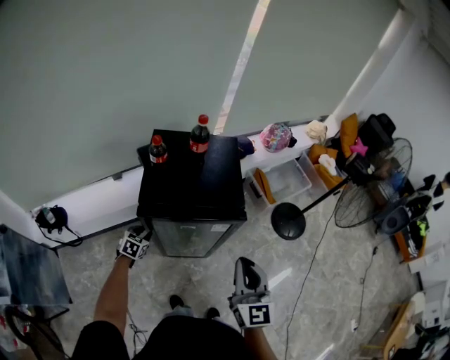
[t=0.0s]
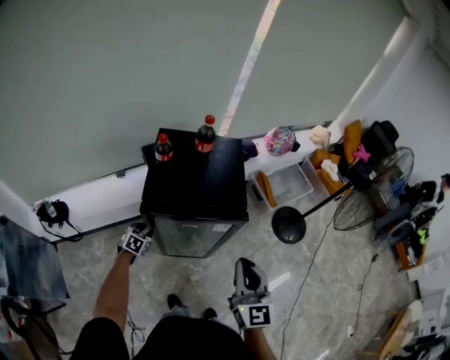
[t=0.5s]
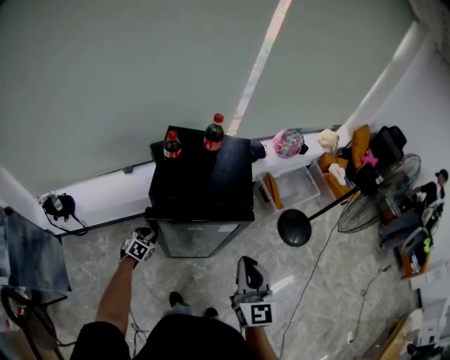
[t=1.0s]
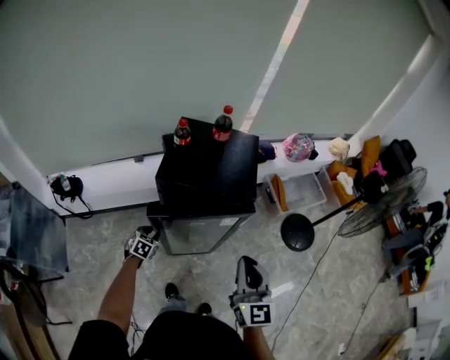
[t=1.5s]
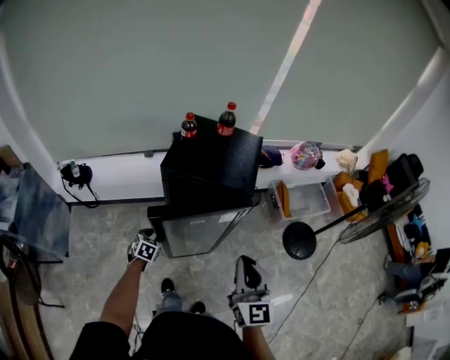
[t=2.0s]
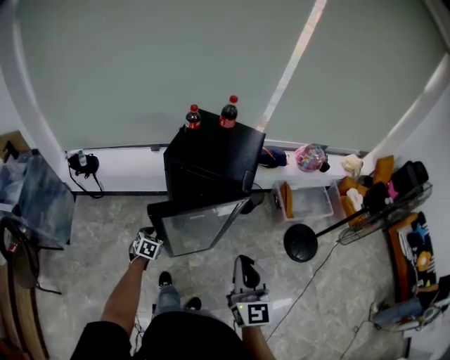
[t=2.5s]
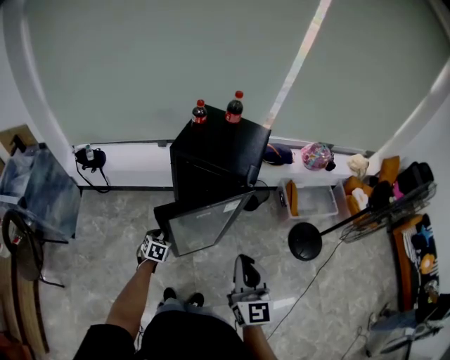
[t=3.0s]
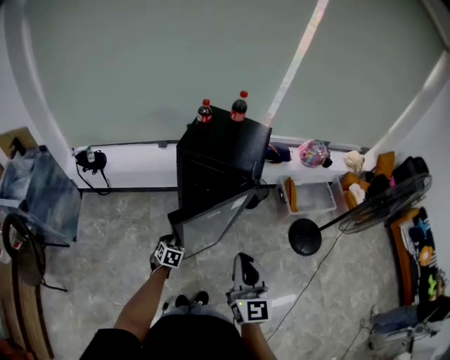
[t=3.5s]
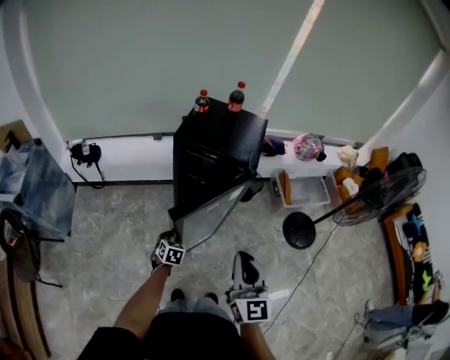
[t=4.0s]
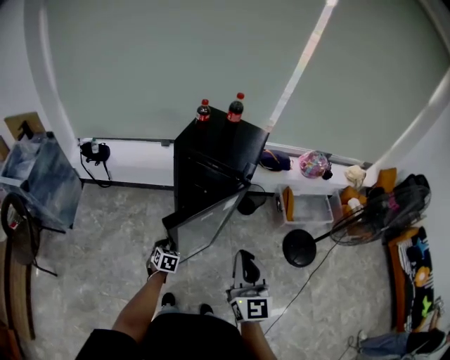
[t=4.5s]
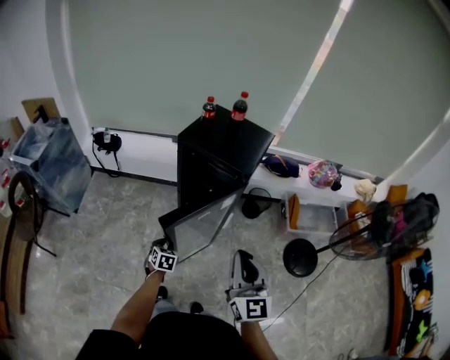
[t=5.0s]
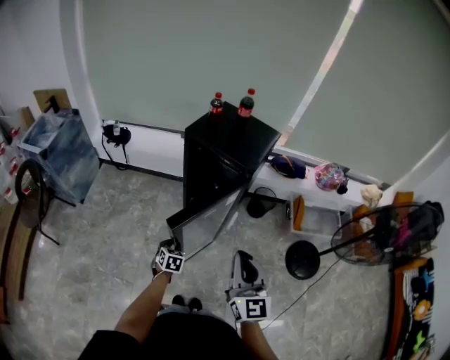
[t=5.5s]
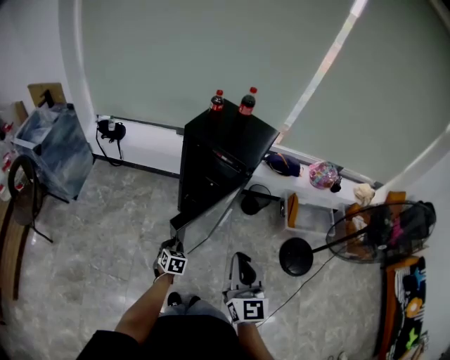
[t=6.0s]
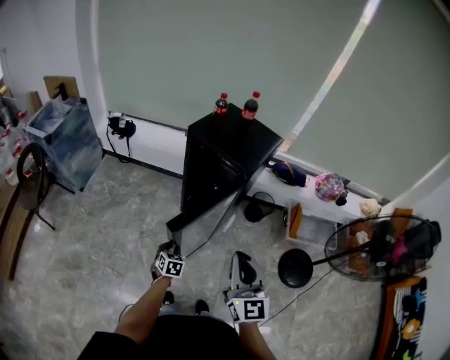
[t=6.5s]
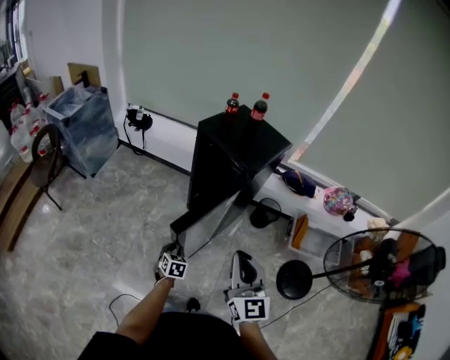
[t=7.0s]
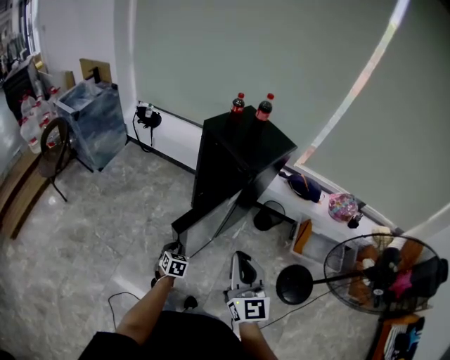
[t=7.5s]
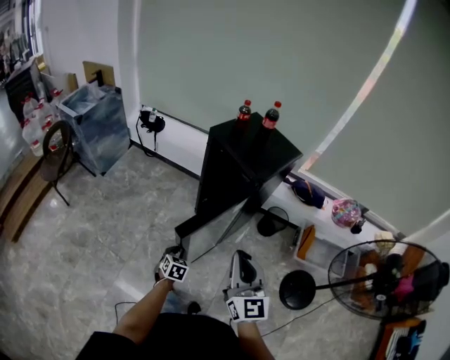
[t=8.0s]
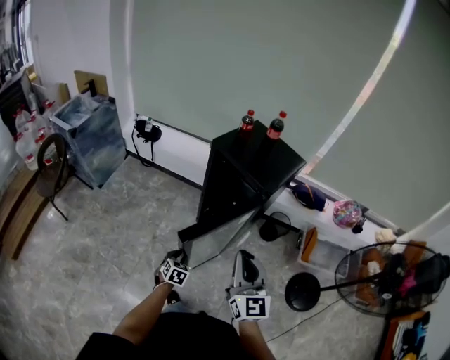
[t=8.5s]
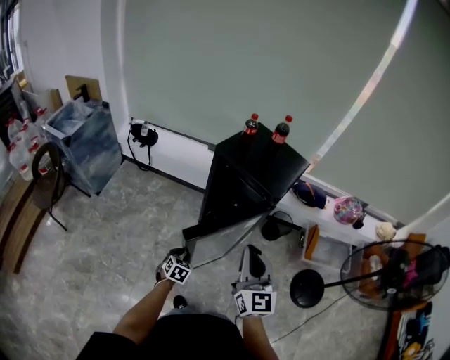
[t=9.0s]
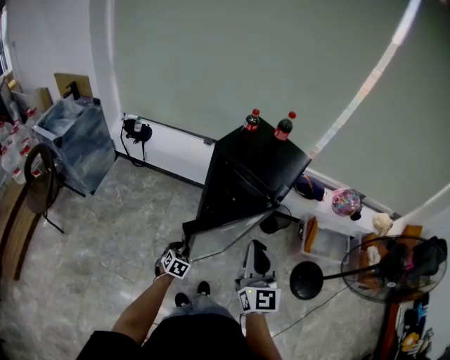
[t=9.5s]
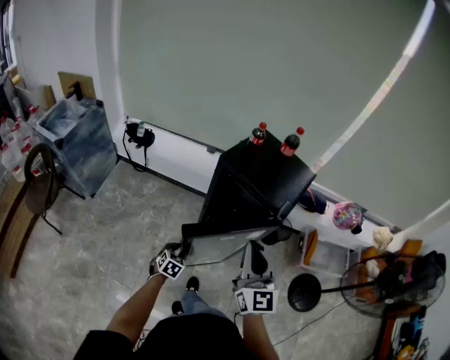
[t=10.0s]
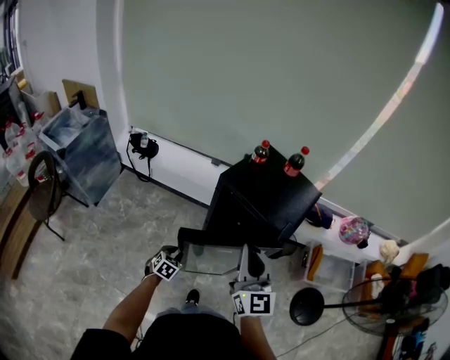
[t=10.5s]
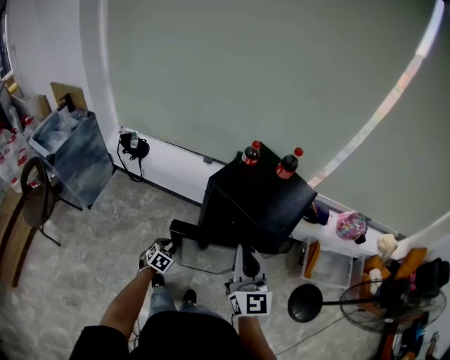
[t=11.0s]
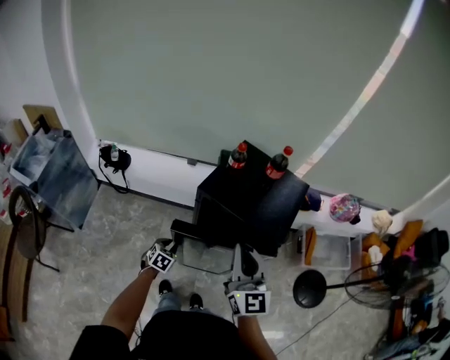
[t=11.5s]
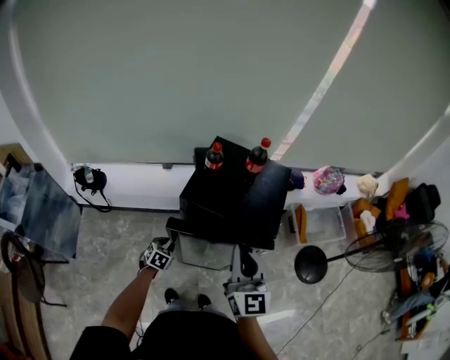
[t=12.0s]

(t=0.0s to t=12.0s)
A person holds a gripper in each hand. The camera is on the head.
t=0.0s - t=2.0s: The right gripper goes some 5 cm backward, while the left gripper goes roughly 15 cm backward.
t=2.0s - t=4.0s: The right gripper goes some 10 cm backward. The left gripper shifts approximately 15 cm backward and to the right.
t=4.0s - t=6.0s: The right gripper is displaced to the right by approximately 10 cm; the left gripper travels backward and to the right by roughly 15 cm.
t=6.0s - t=8.0s: The left gripper travels backward and to the right by about 10 cm. Meanwhile the right gripper shifts roughly 5 cm to the right.
t=8.0s - t=10.0s: Both grippers move forward and to the left, some 20 cm.
t=10.0s - t=12.0s: The left gripper heads forward, covering some 25 cm, while the right gripper shifts approximately 15 cm forward.

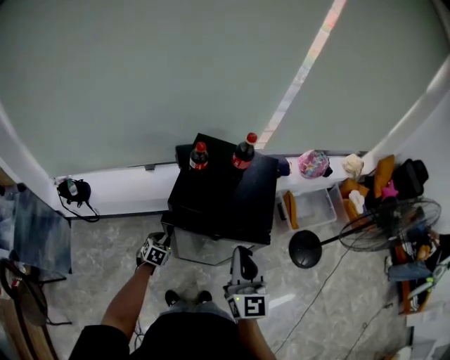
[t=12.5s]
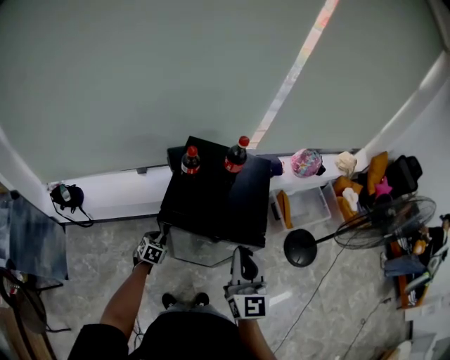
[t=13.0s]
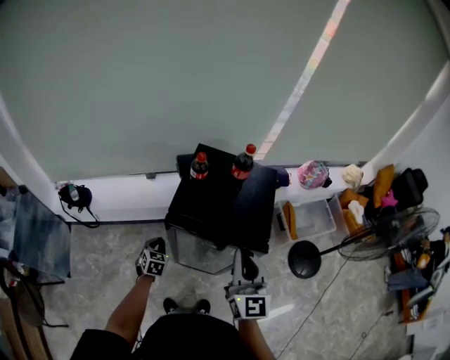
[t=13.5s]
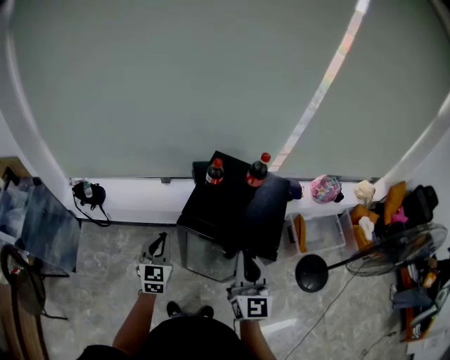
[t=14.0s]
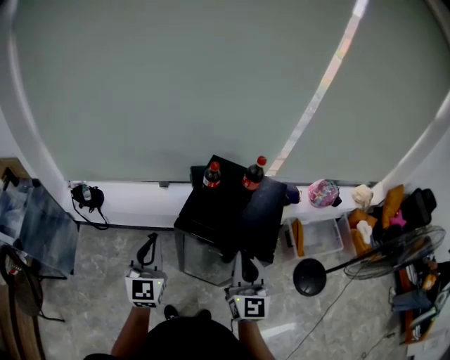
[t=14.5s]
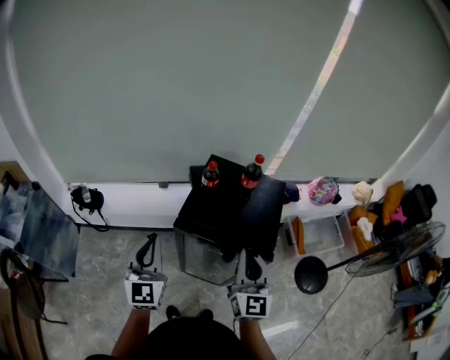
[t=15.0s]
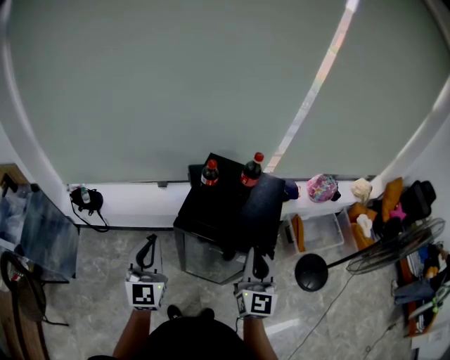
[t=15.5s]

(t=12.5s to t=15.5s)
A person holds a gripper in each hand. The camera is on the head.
t=12.5s - t=14.0s: The left gripper moves upward, approximately 20 cm, and tips its fingers upward by some 40 degrees.
t=14.0s - t=15.5s: The left gripper goes roughly 15 cm upward.

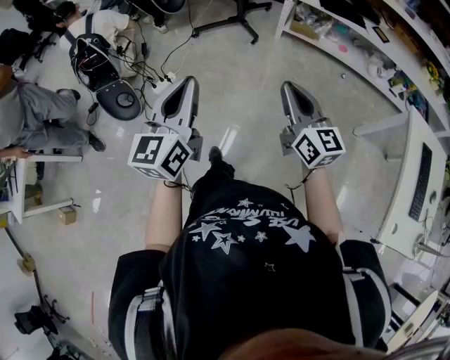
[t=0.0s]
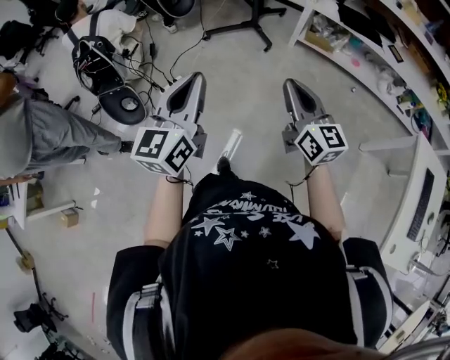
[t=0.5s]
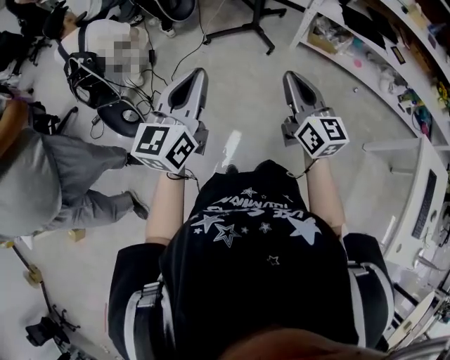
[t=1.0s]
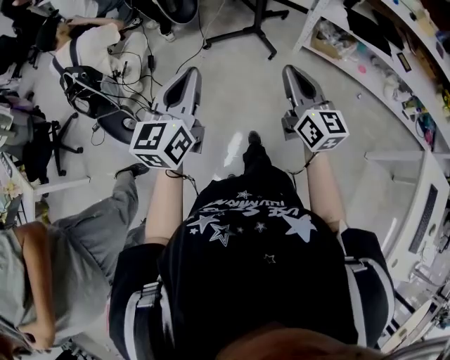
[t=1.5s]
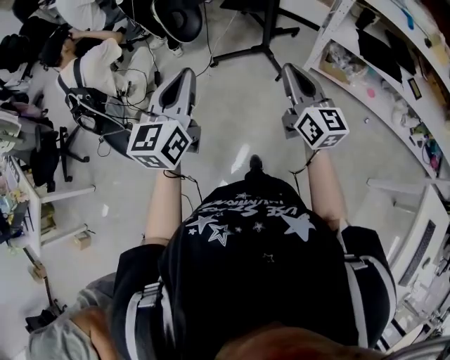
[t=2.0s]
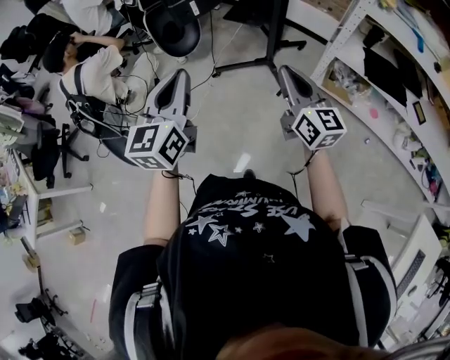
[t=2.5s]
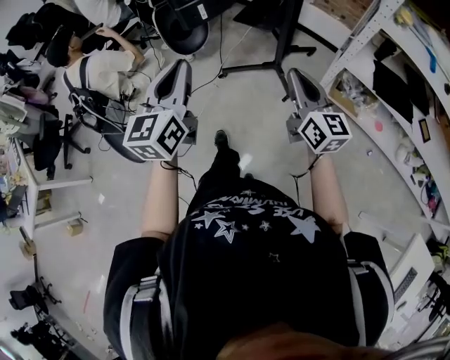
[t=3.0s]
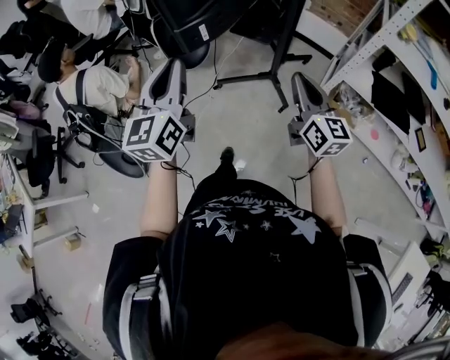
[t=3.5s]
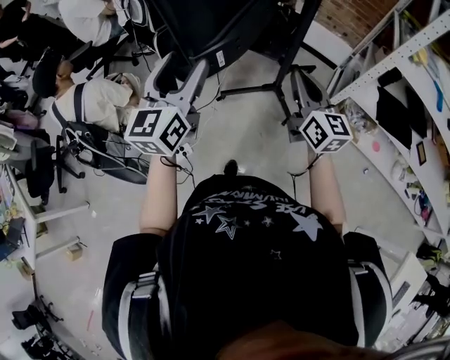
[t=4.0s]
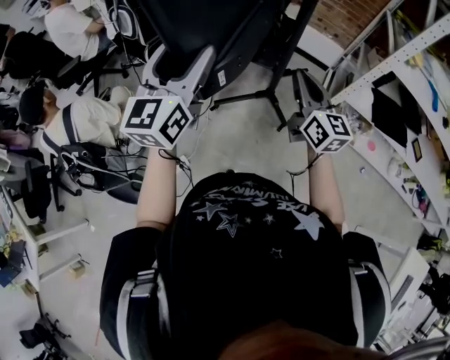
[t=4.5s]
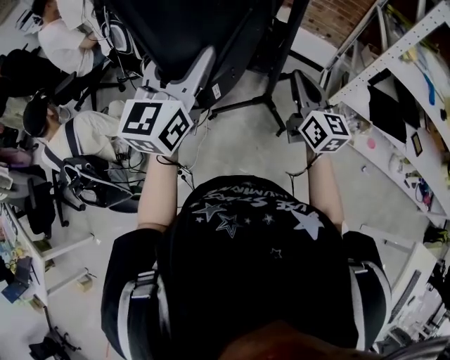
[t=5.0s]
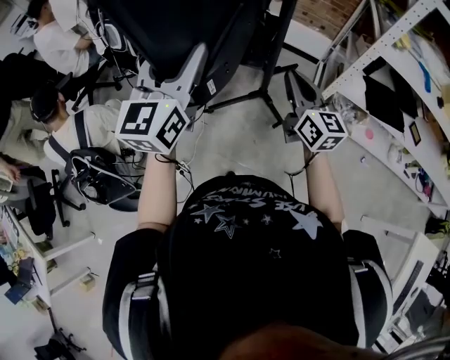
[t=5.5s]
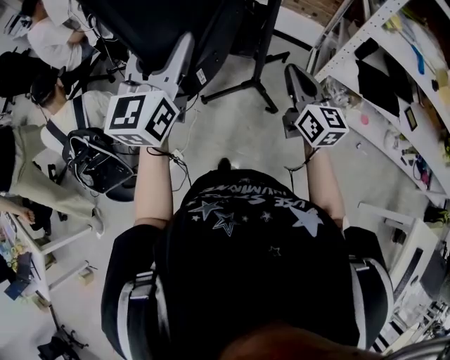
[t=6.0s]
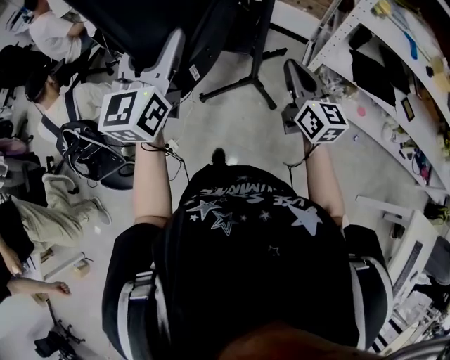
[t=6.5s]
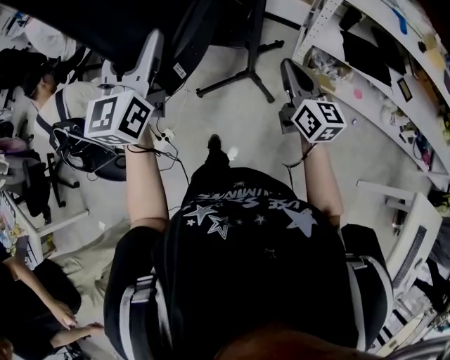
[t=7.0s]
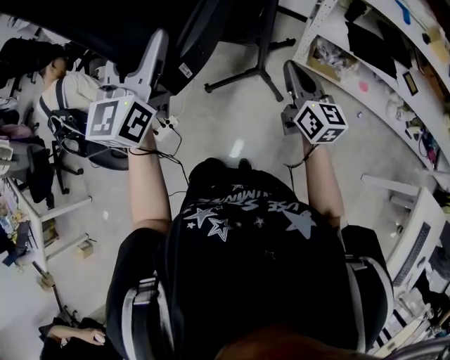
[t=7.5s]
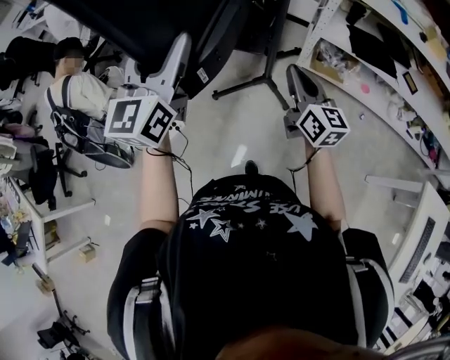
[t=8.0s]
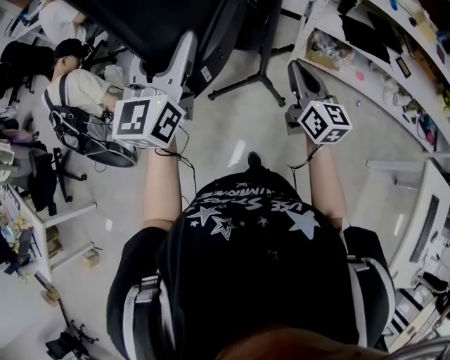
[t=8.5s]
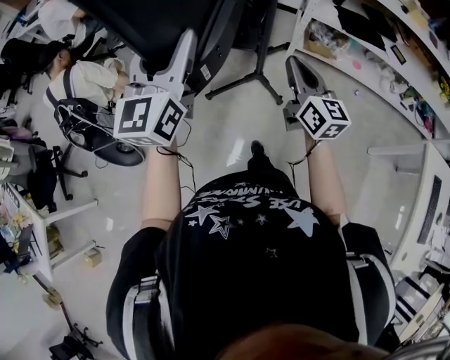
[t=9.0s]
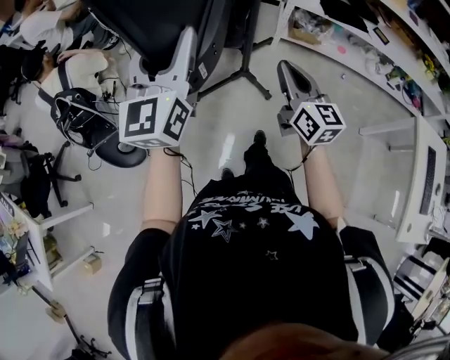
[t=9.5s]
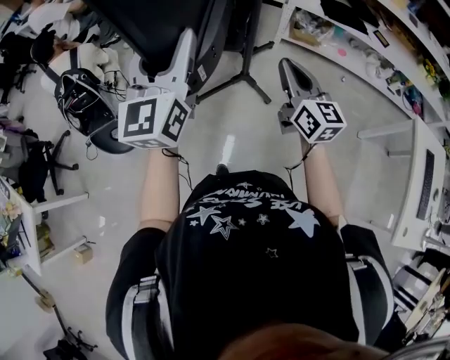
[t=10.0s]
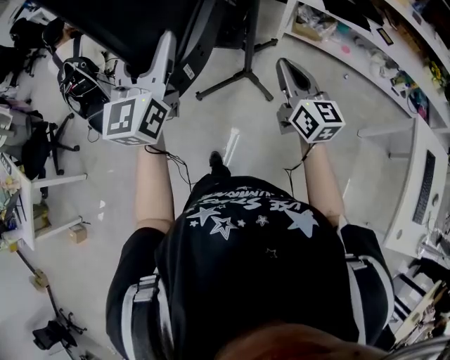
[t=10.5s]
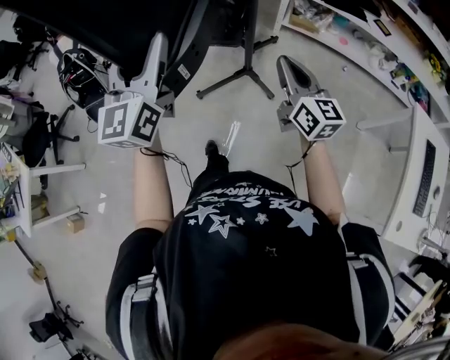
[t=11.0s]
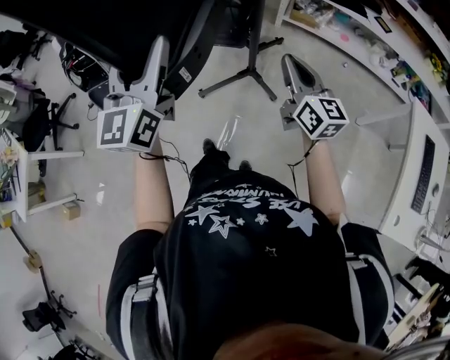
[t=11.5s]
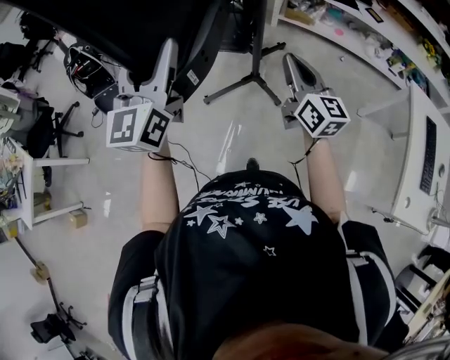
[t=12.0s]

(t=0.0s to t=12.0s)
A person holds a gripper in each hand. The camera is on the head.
t=0.0s - t=2.0s: Both grippers are carried forward, some 50 cm.
t=2.0s - t=4.0s: Both grippers move forward, roughly 30 cm. The left gripper opens up.
t=4.0s - t=6.0s: The left gripper goes some 5 cm upward, and travels forward and back again, roughly 10 cm each way, while the right gripper goes roughly 5 cm to the right, and goes forward and returns, roughly 5 cm each way.
t=6.0s - t=8.0s: The grippers both shift backward by about 25 cm.
t=8.0s - t=10.0s: Both grippers move backward, approximately 25 cm.
t=10.0s - t=12.0s: The right gripper travels backward and to the right by roughly 25 cm, while the left gripper travels backward by about 30 cm.
